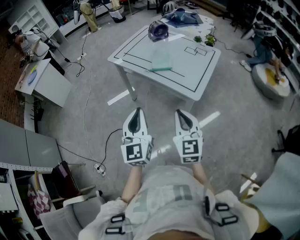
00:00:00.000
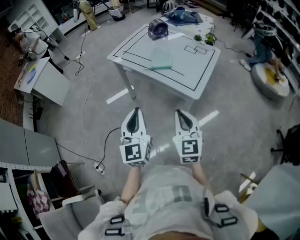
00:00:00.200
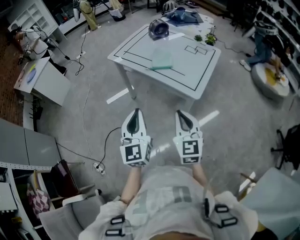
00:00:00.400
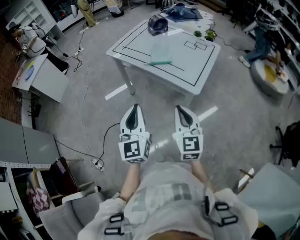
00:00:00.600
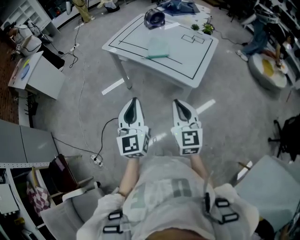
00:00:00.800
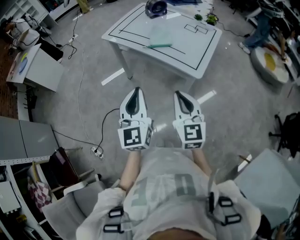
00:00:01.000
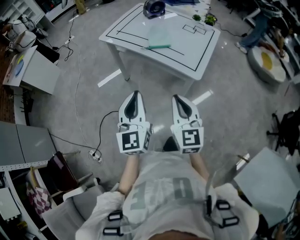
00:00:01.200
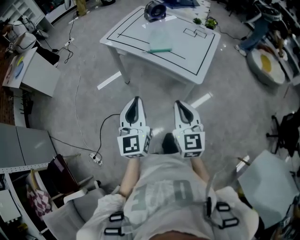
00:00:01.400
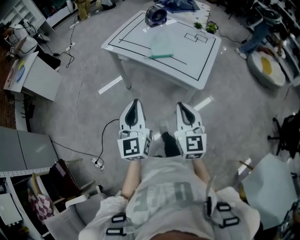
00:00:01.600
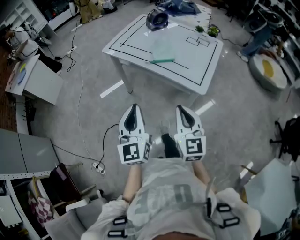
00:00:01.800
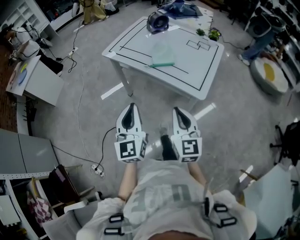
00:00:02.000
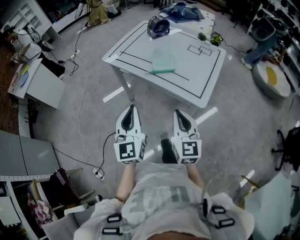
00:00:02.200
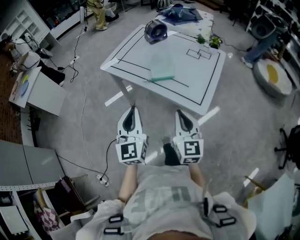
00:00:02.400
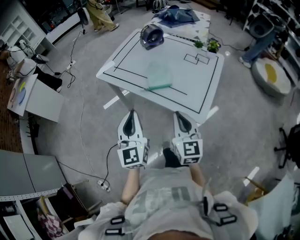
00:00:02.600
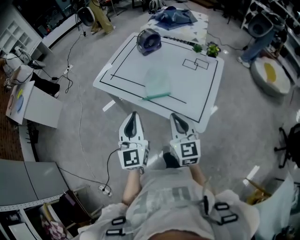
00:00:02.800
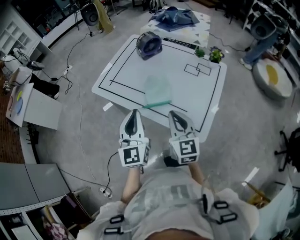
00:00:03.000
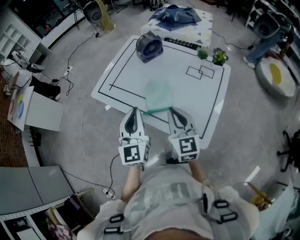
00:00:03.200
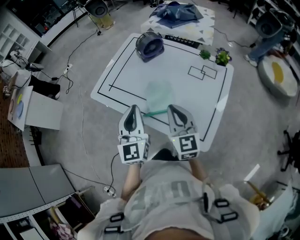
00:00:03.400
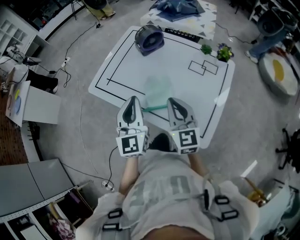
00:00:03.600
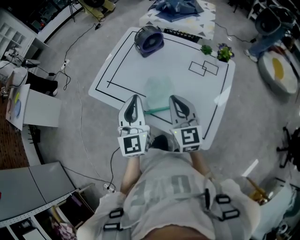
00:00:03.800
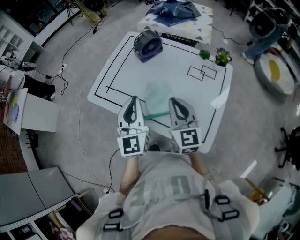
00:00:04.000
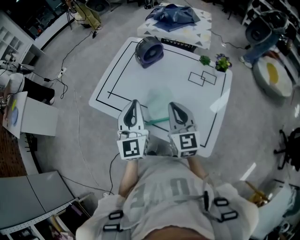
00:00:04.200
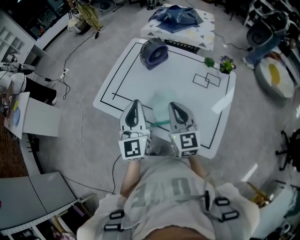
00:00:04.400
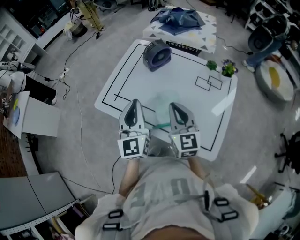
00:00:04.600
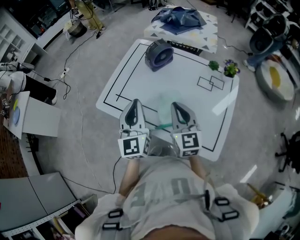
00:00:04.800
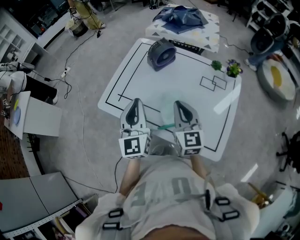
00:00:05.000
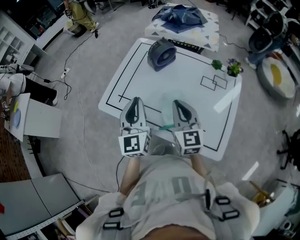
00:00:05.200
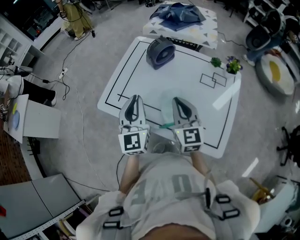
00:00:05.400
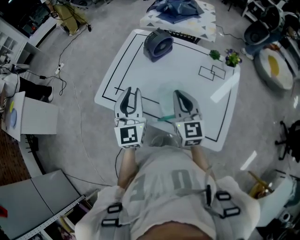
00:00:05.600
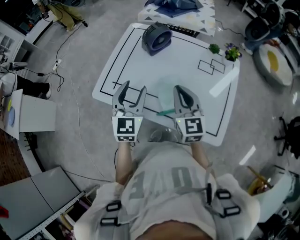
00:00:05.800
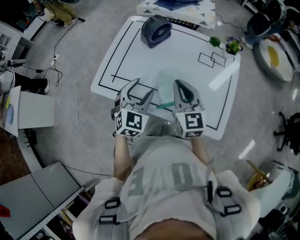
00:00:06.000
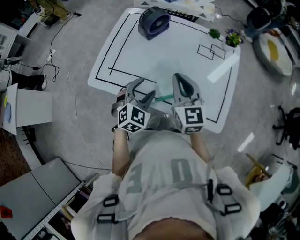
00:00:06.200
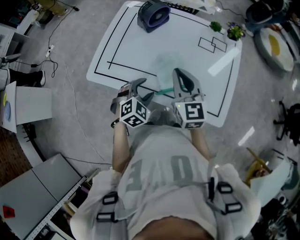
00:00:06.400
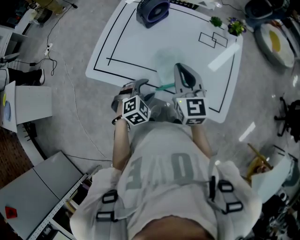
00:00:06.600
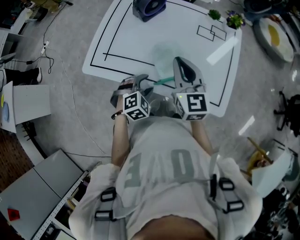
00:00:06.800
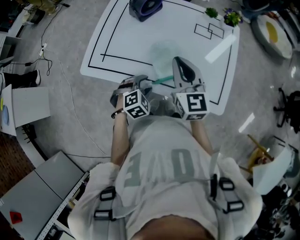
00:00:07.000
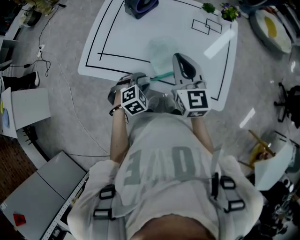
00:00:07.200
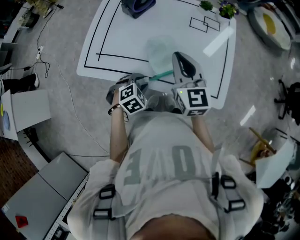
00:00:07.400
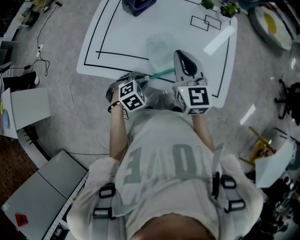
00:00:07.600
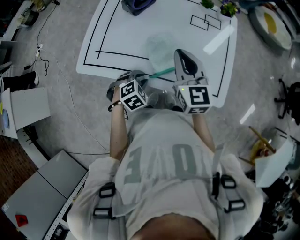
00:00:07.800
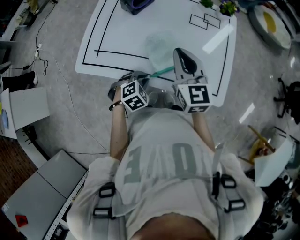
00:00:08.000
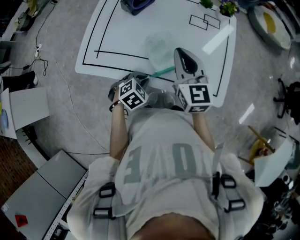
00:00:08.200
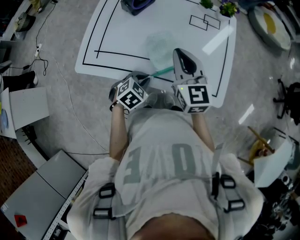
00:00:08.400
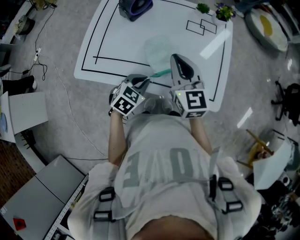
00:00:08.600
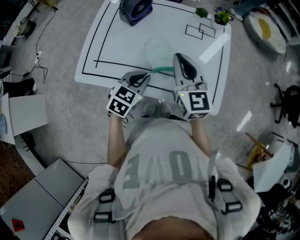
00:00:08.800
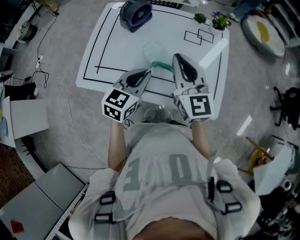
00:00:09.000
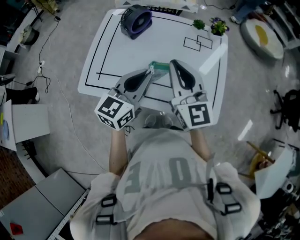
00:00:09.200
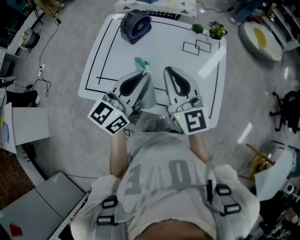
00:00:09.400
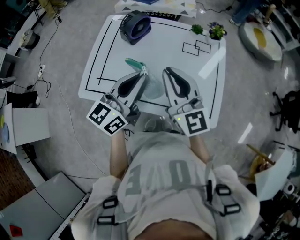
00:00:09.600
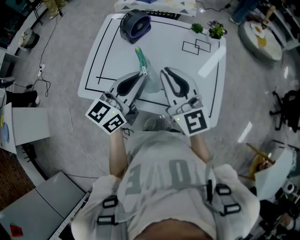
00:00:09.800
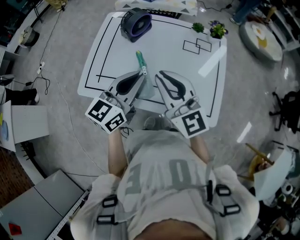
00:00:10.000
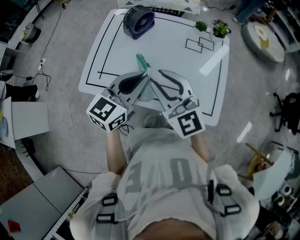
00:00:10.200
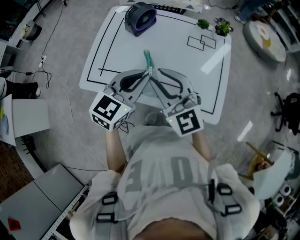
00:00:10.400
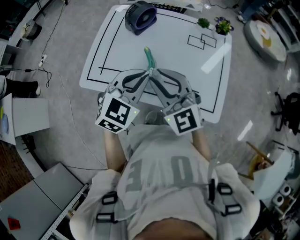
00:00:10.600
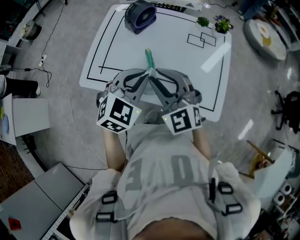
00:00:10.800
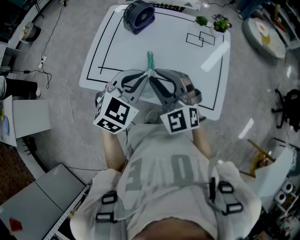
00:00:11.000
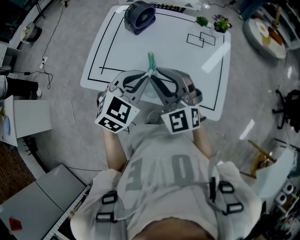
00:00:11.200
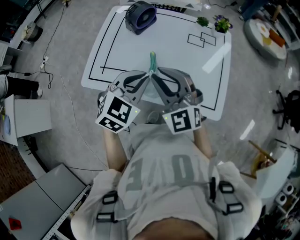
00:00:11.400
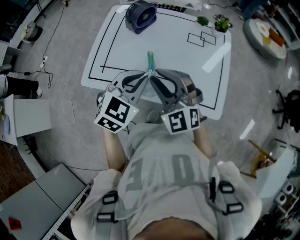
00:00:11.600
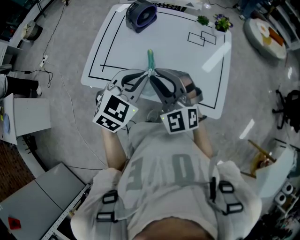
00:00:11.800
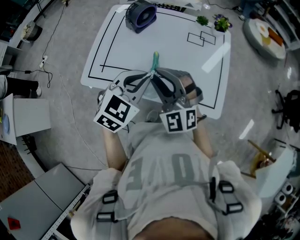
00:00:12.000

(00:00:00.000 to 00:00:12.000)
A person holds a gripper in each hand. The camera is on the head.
00:00:00.000 - 00:00:01.600: The left gripper shifts by approximately 5 cm.
00:00:01.600 - 00:00:03.000: The two grippers go approximately 30 cm forward.
00:00:03.000 - 00:00:04.400: Both grippers move forward, some 15 cm.
00:00:04.400 - 00:00:06.000: The left gripper travels downward by roughly 10 cm, turns by about 50 degrees, and opens its fingers.
00:00:06.000 - 00:00:07.600: The left gripper moves downward and backward, about 20 cm, tilts its fingers about 40 degrees downward, and closes its fingers.
00:00:07.600 - 00:00:09.000: The left gripper goes some 20 cm upward and forward, and tips its fingers upward by roughly 40 degrees; the right gripper goes approximately 5 cm upward.
00:00:09.000 - 00:00:10.400: The right gripper is displaced to the left and backward by about 10 cm, and turns by some 30 degrees. The left gripper travels upward by roughly 5 cm.
00:00:10.400 - 00:00:12.000: The right gripper rotates approximately 20 degrees.

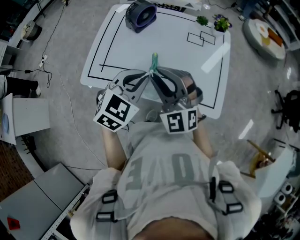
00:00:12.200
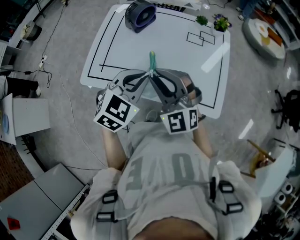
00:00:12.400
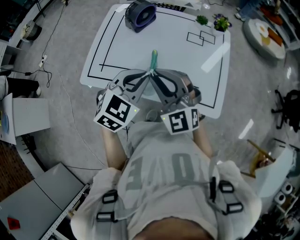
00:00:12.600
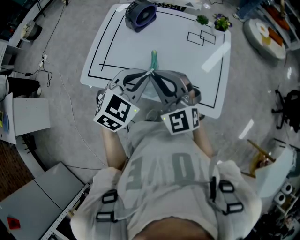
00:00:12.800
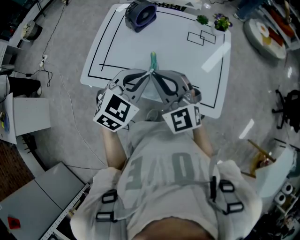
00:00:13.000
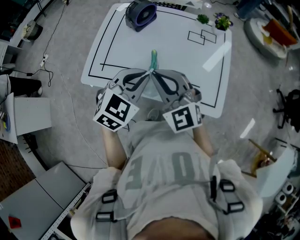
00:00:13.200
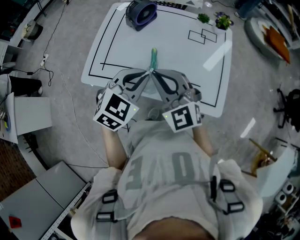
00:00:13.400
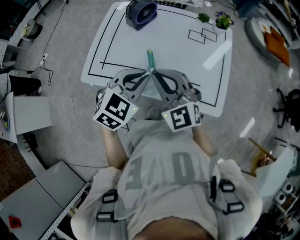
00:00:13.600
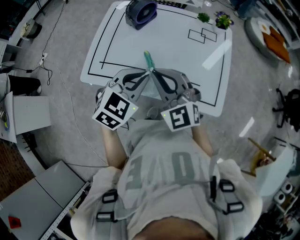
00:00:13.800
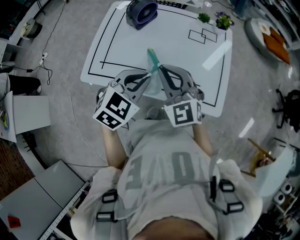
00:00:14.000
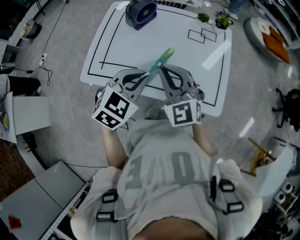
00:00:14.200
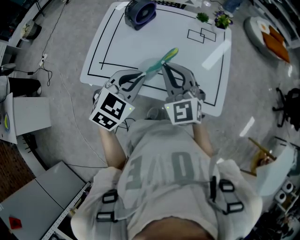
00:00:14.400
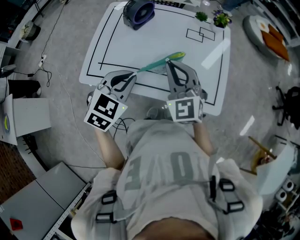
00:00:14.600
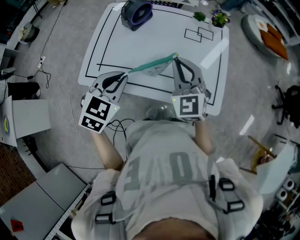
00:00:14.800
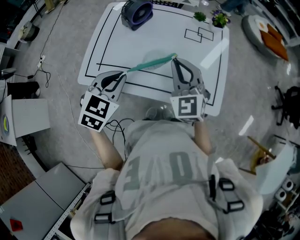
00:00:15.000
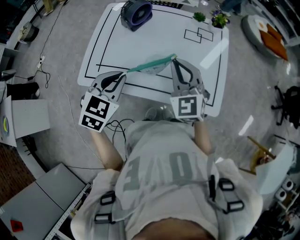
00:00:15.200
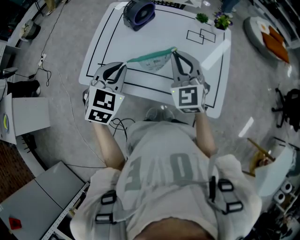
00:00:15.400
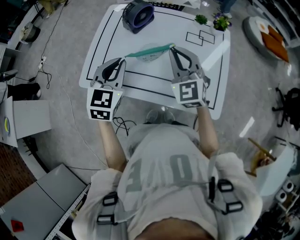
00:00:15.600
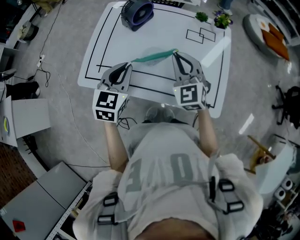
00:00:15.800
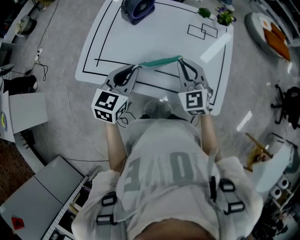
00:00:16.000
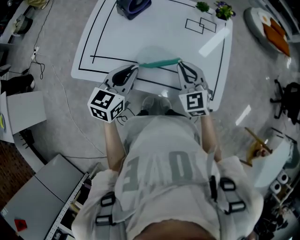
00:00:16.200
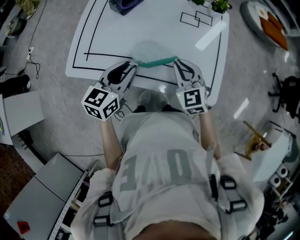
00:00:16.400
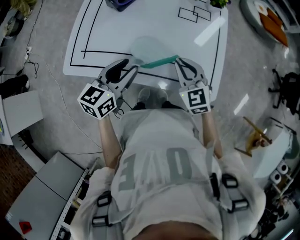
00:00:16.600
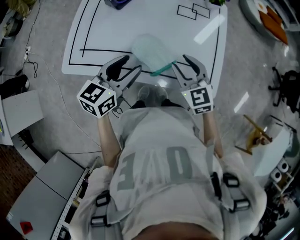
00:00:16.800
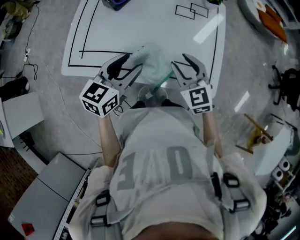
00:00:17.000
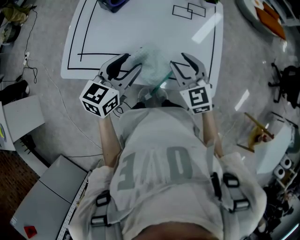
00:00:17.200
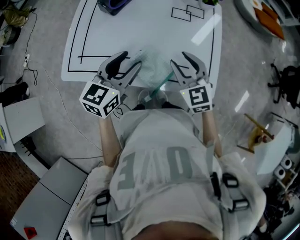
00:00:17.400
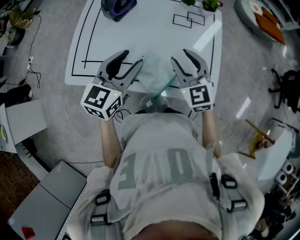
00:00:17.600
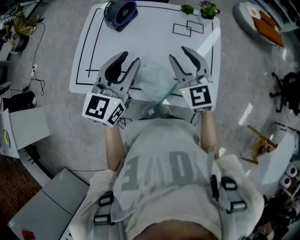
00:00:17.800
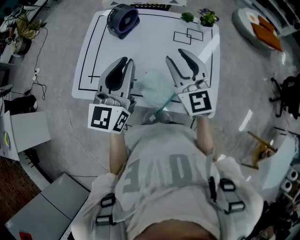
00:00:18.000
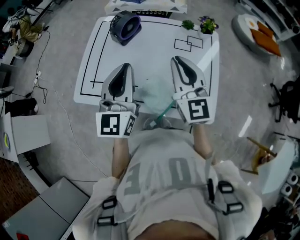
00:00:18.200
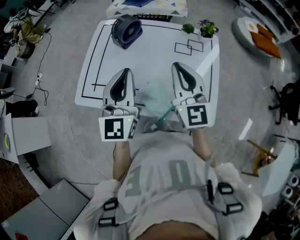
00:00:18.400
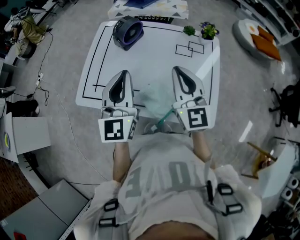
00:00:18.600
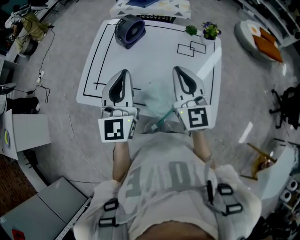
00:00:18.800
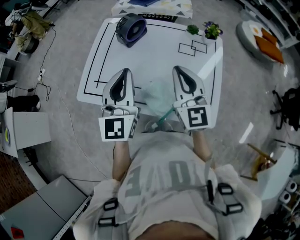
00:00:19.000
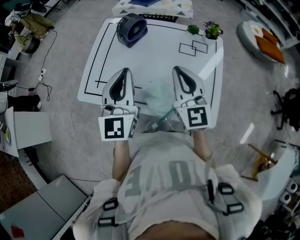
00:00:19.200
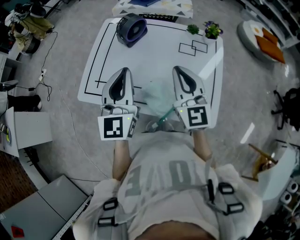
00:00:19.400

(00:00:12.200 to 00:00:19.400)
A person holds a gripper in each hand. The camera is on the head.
00:00:12.200 - 00:00:13.600: The grippers stay close to where they were, moving slightly.
00:00:13.600 - 00:00:15.000: The left gripper goes some 5 cm to the left, while the right gripper goes approximately 10 cm to the right and forward.
00:00:15.000 - 00:00:16.600: The right gripper travels downward and to the right by approximately 10 cm. Meanwhile the left gripper goes approximately 10 cm downward and to the right, turns by approximately 40 degrees, and opens.
00:00:16.600 - 00:00:18.000: The two grippers go some 15 cm upward. The left gripper turns by some 30 degrees. Meanwhile the right gripper rotates approximately 30 degrees, and opens up.
00:00:18.000 - 00:00:19.400: The right gripper closes up.

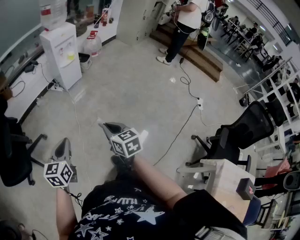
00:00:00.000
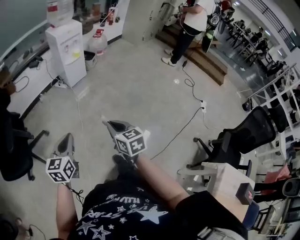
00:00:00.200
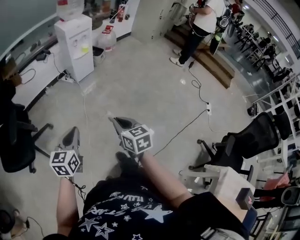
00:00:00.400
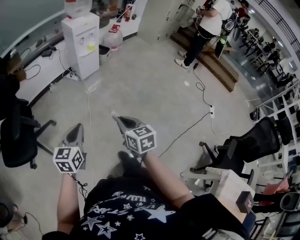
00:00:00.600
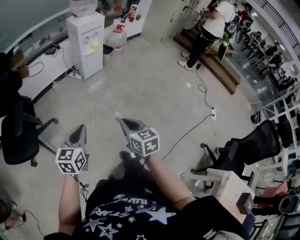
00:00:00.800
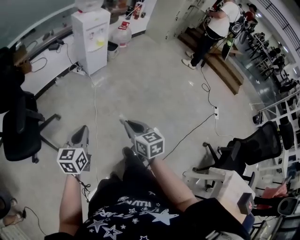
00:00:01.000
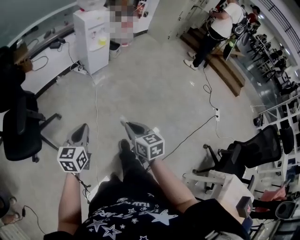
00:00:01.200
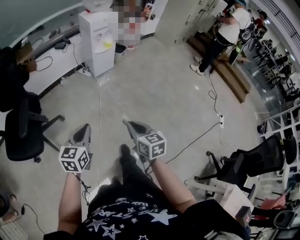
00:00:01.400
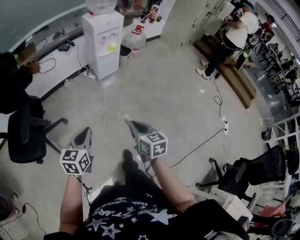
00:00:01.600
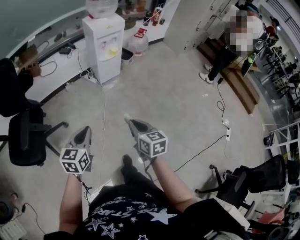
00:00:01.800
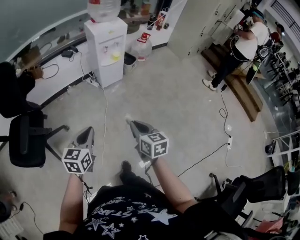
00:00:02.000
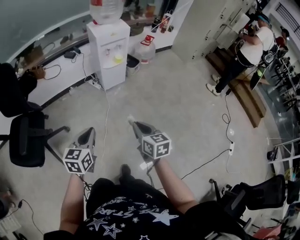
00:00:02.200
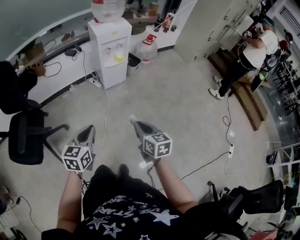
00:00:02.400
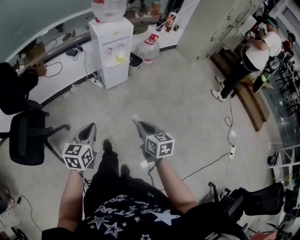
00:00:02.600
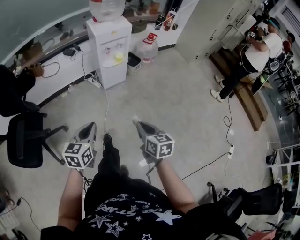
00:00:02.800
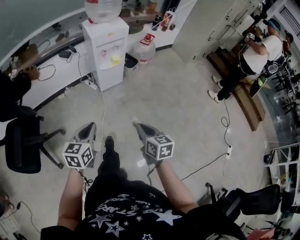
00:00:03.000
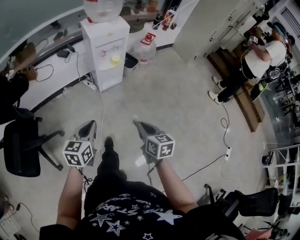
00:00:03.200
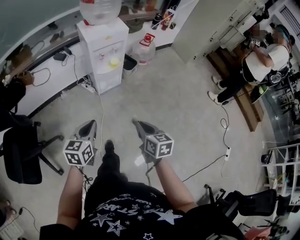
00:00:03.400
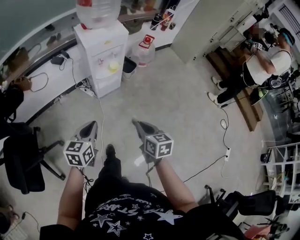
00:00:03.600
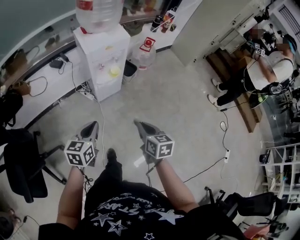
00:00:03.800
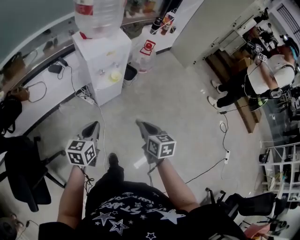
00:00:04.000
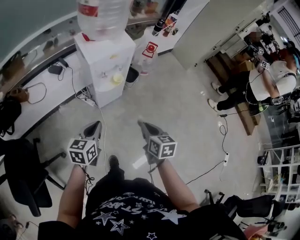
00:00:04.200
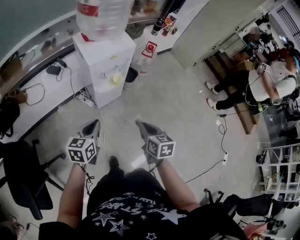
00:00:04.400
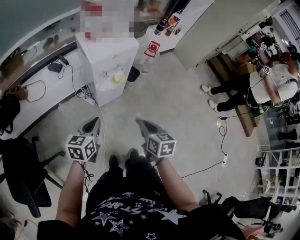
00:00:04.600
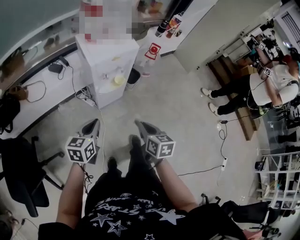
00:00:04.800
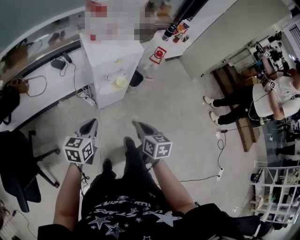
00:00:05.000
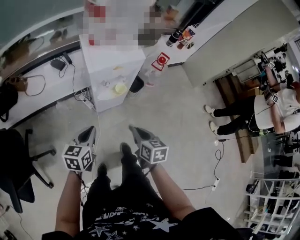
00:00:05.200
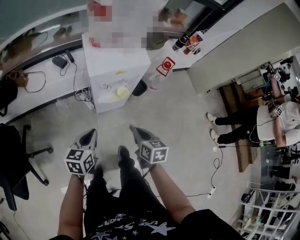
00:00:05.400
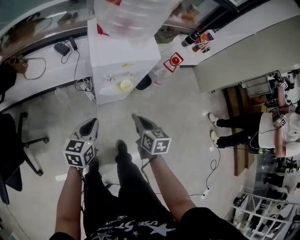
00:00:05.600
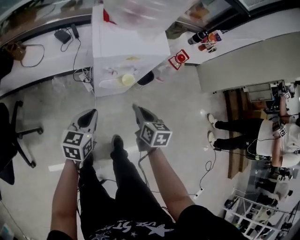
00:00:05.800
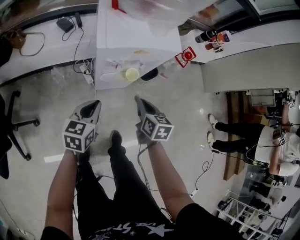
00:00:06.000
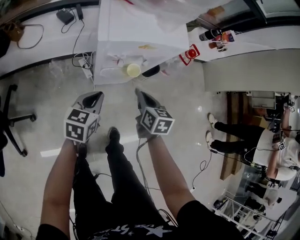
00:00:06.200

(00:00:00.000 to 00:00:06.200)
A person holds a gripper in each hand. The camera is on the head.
00:00:00.000 - 00:00:01.600: Both grippers travel together forward, about 15 cm.
00:00:01.600 - 00:00:03.200: The right gripper is displaced forward and to the right by roughly 30 cm. Meanwhile the left gripper shifts roughly 30 cm forward.
00:00:03.200 - 00:00:04.600: Both grippers travel together forward, some 30 cm.
00:00:04.600 - 00:00:06.200: The grippers both shift forward and downward by approximately 30 cm.
